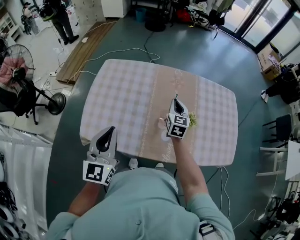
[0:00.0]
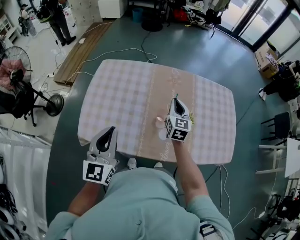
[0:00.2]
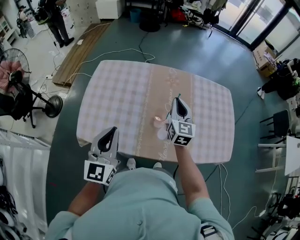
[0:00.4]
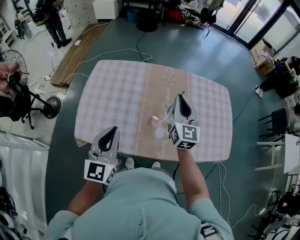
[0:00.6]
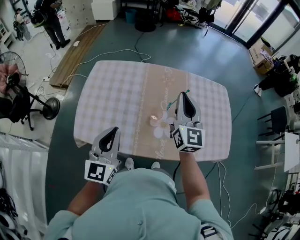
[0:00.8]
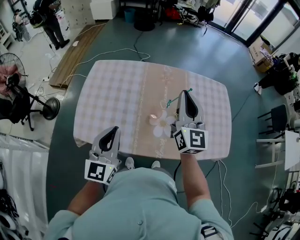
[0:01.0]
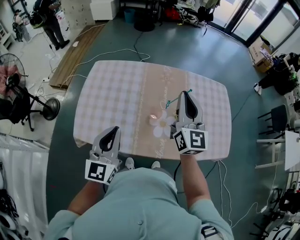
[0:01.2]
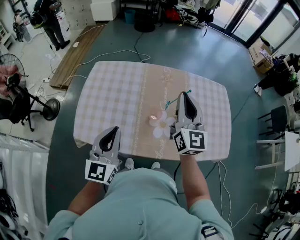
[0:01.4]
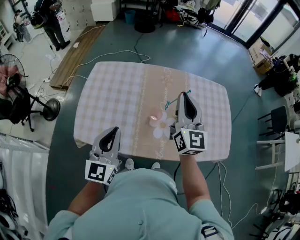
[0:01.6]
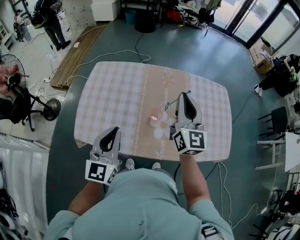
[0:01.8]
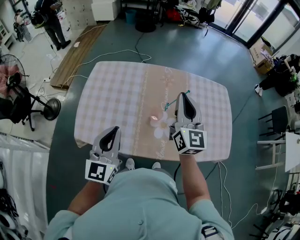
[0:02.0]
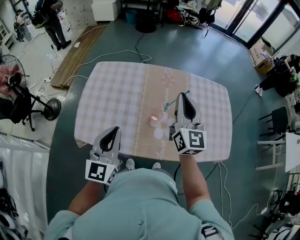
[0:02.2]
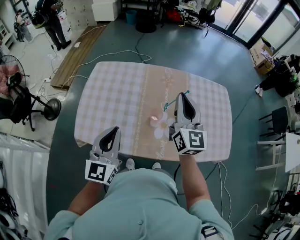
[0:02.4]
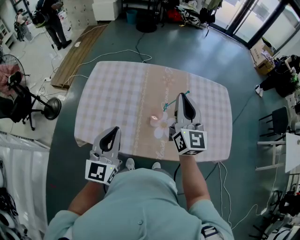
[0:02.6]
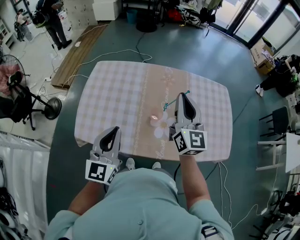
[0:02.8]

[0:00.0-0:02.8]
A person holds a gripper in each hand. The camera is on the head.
0:00.0 to 0:01.4: The left gripper is displaced to the right by roughly 5 cm; the right gripper goes about 25 cm upward and backward, and rotates some 30 degrees.
0:01.4 to 0:02.8: Neither gripper changes place.

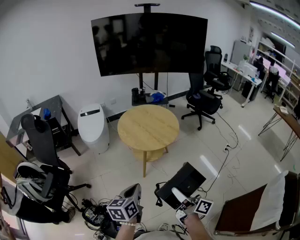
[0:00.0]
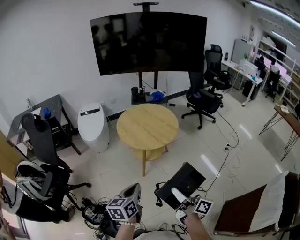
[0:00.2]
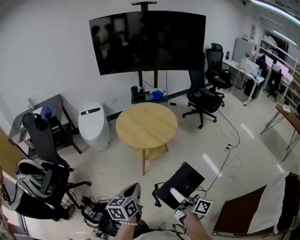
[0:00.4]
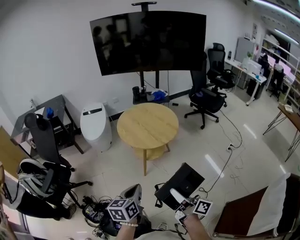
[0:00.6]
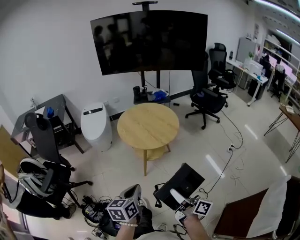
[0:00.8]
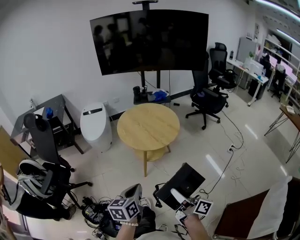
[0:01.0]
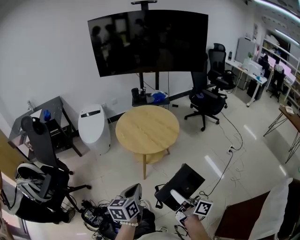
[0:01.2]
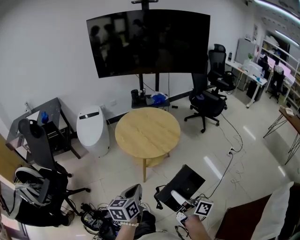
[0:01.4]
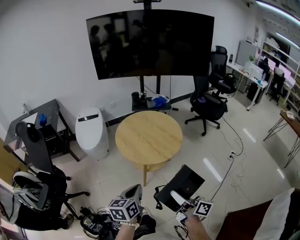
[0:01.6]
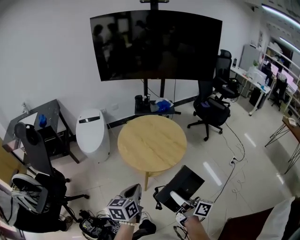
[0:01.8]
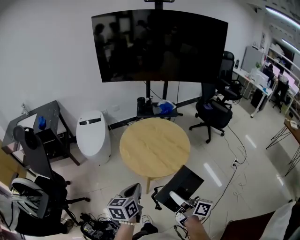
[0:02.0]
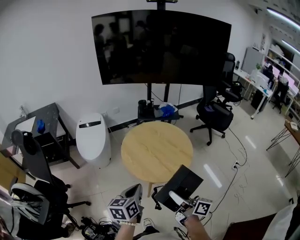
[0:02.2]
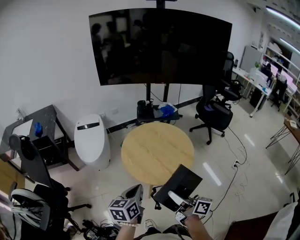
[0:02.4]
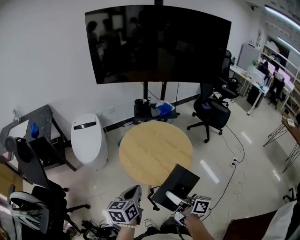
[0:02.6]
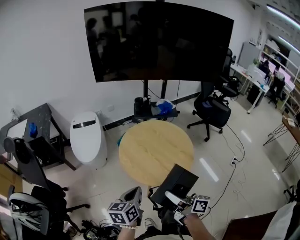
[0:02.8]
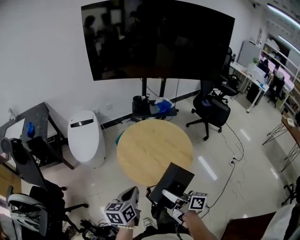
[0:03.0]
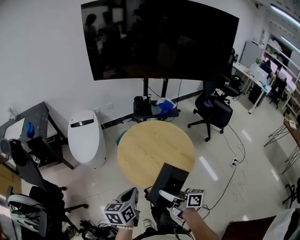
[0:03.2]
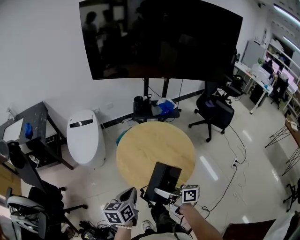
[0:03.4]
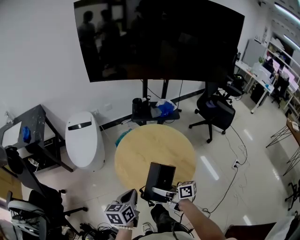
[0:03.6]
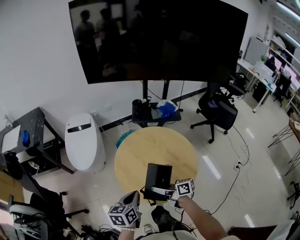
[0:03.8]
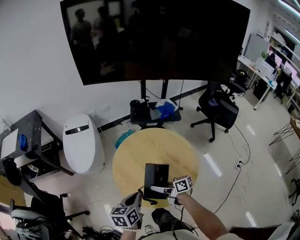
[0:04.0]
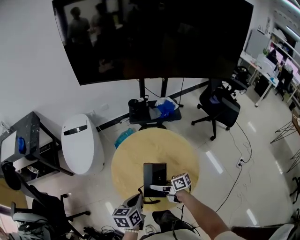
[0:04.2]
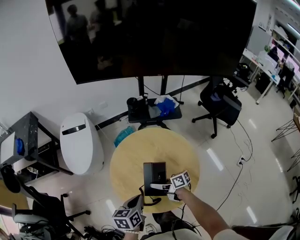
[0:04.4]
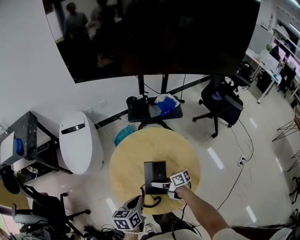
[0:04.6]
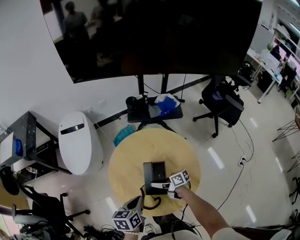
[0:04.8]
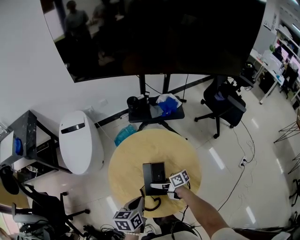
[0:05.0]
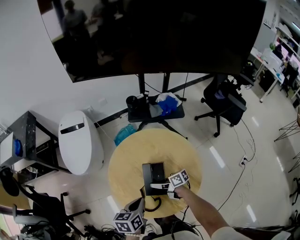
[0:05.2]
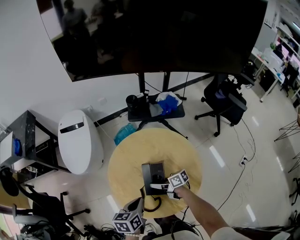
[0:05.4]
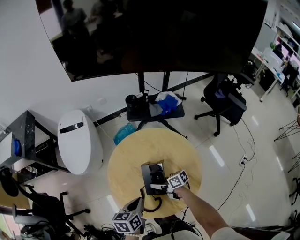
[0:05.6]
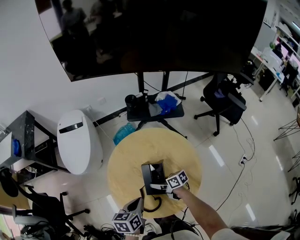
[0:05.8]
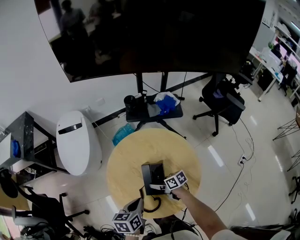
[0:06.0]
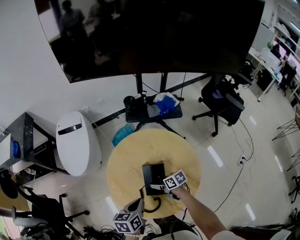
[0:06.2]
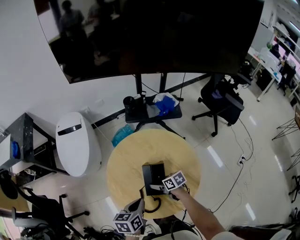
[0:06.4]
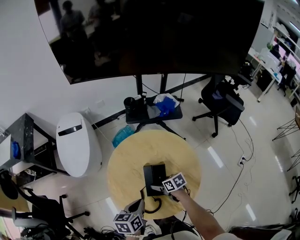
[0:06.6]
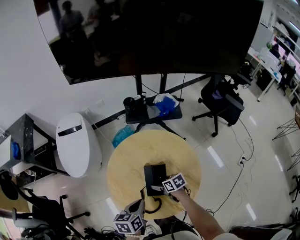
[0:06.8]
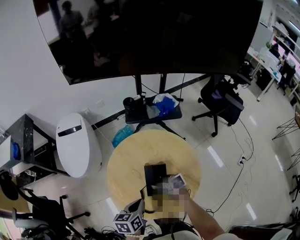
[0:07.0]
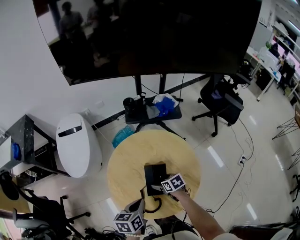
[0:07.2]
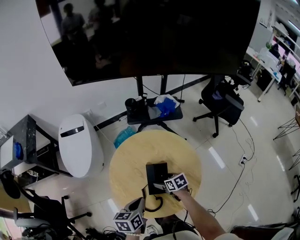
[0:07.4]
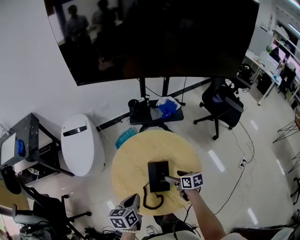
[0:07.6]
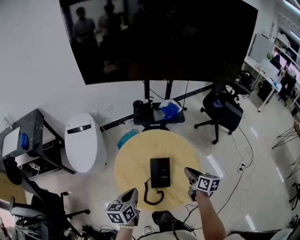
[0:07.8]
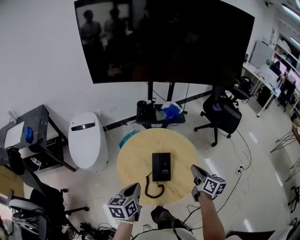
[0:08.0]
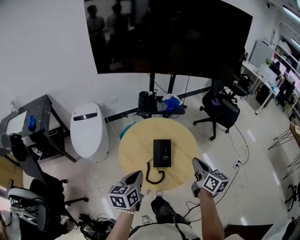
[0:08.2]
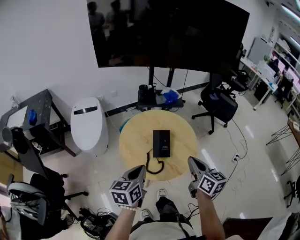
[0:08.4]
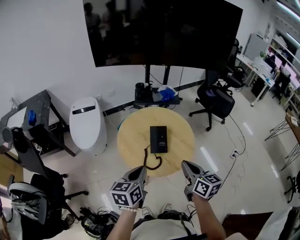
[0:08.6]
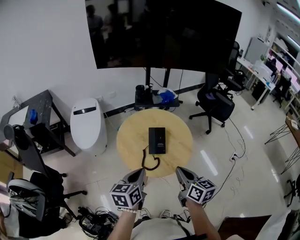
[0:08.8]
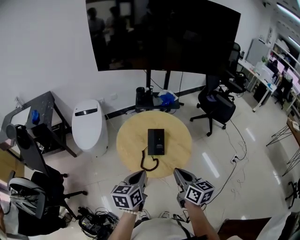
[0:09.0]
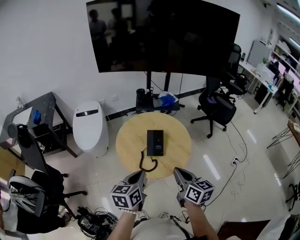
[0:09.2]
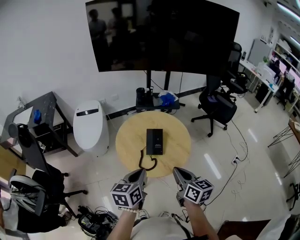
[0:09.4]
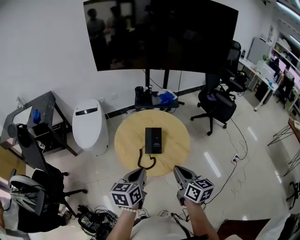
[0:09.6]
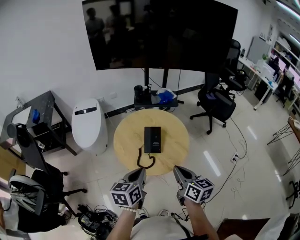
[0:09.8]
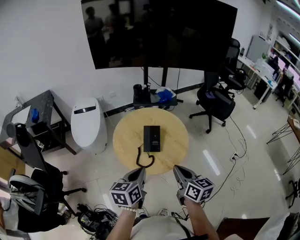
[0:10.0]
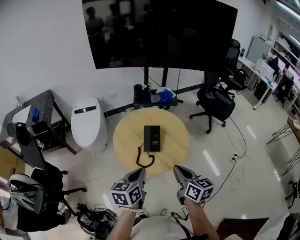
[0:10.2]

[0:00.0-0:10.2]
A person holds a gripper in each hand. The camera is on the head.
0:00.0 to 0:01.4: The grippers both shift forward by about 5 cm.
0:01.4 to 0:03.0: Both grippers move forward, some 25 cm.
0:03.0 to 0:04.4: The right gripper heads forward and downward, covering roughly 30 cm, and swivels about 30 degrees. The left gripper moves forward, to the right and downward, approximately 20 cm.
0:04.4 to 0:05.8: The right gripper moves downward, some 5 cm.
0:05.8 to 0:07.2: The right gripper moves to the right, some 5 cm, changes its angle by approximately 30 degrees, and opens up.
0:07.2 to 0:08.8: The right gripper is displaced upward and backward by some 40 cm, tips its fingers upward by some 40 degrees, and closes. The left gripper moves backward and upward, some 20 cm.
0:08.8 to 0:10.2: There are only small adjustments of the grippers.

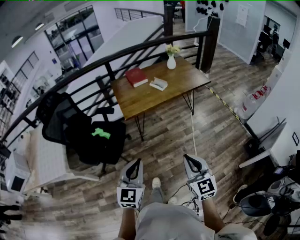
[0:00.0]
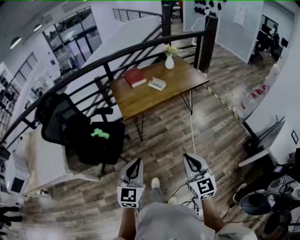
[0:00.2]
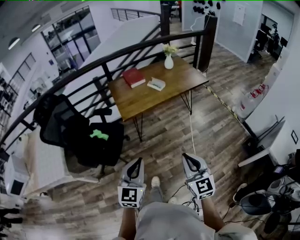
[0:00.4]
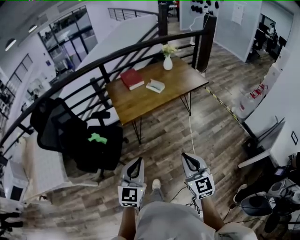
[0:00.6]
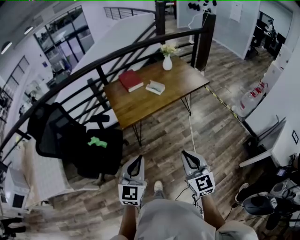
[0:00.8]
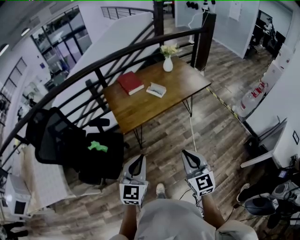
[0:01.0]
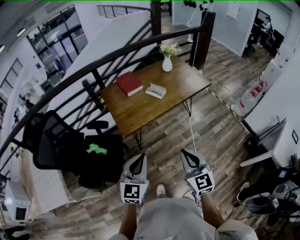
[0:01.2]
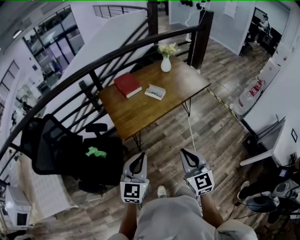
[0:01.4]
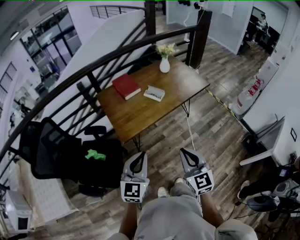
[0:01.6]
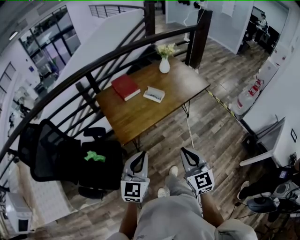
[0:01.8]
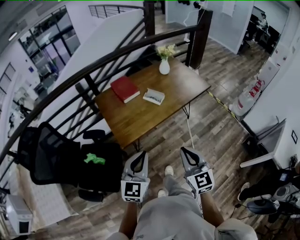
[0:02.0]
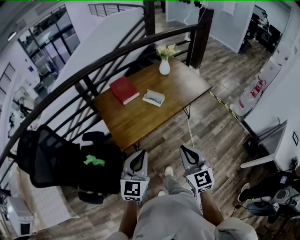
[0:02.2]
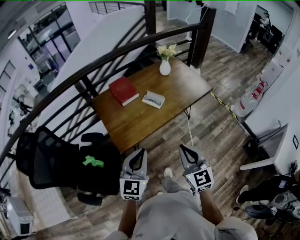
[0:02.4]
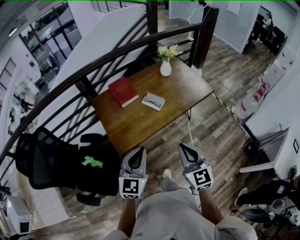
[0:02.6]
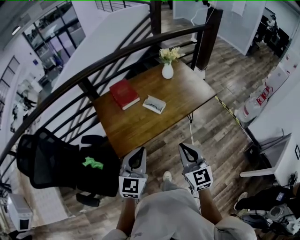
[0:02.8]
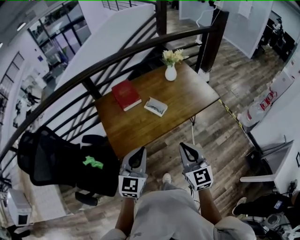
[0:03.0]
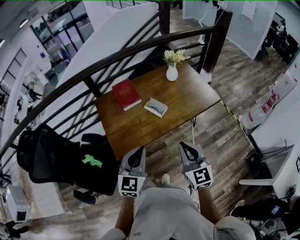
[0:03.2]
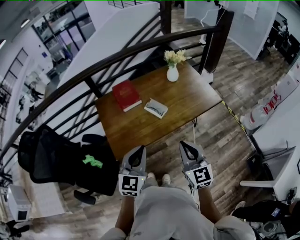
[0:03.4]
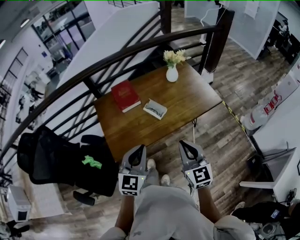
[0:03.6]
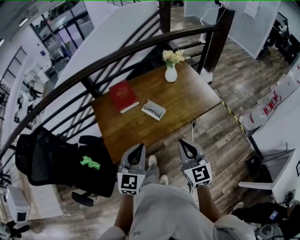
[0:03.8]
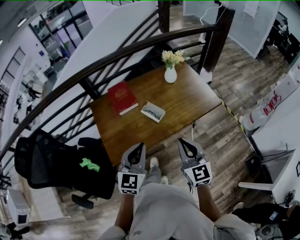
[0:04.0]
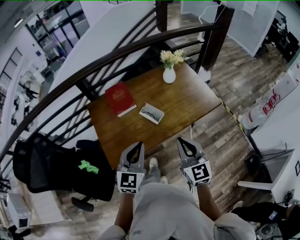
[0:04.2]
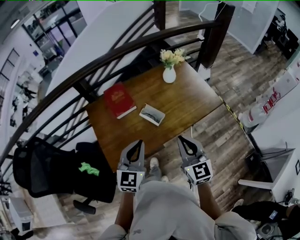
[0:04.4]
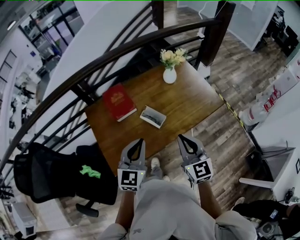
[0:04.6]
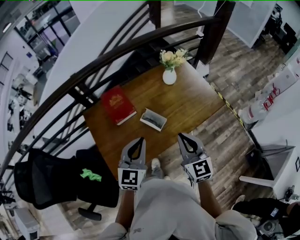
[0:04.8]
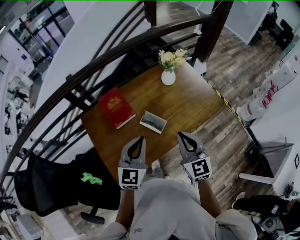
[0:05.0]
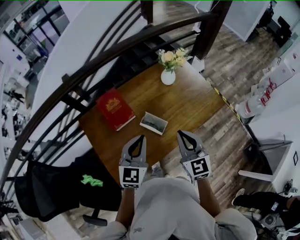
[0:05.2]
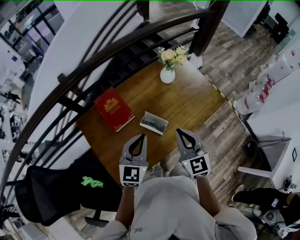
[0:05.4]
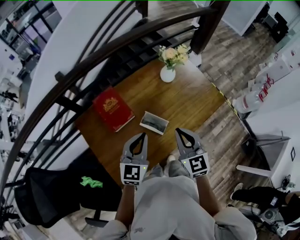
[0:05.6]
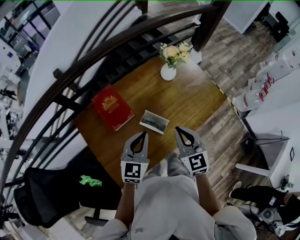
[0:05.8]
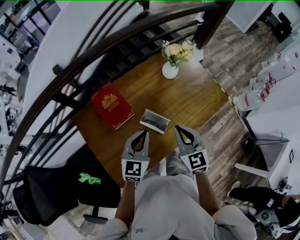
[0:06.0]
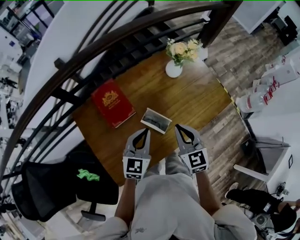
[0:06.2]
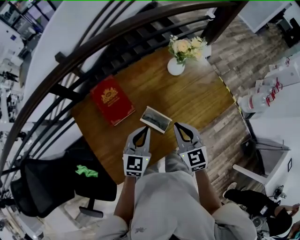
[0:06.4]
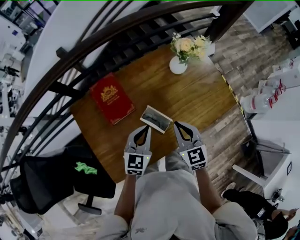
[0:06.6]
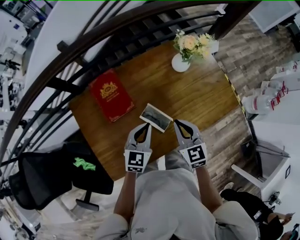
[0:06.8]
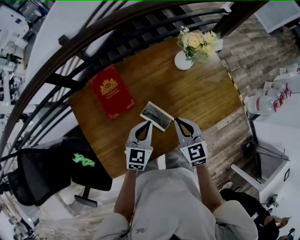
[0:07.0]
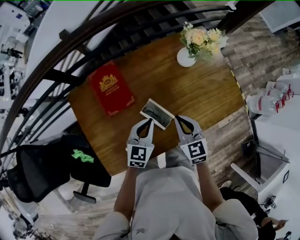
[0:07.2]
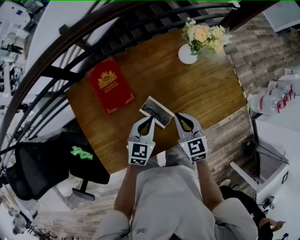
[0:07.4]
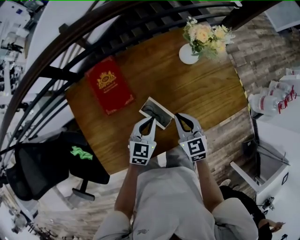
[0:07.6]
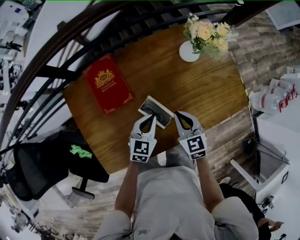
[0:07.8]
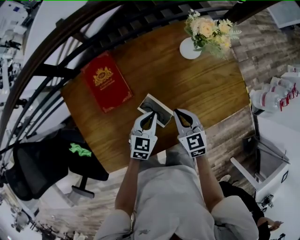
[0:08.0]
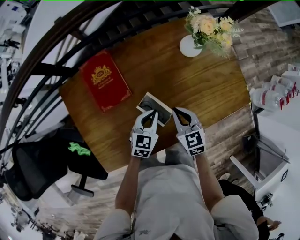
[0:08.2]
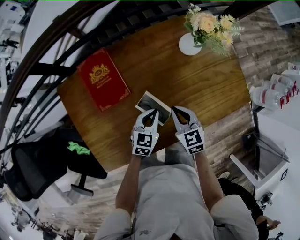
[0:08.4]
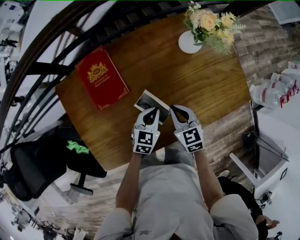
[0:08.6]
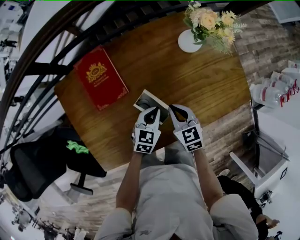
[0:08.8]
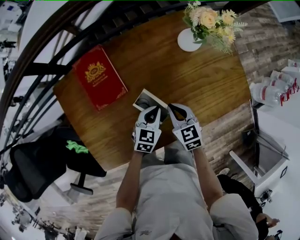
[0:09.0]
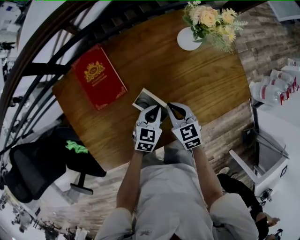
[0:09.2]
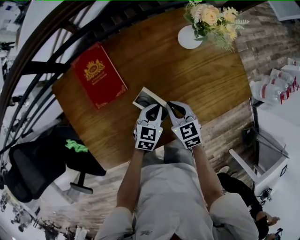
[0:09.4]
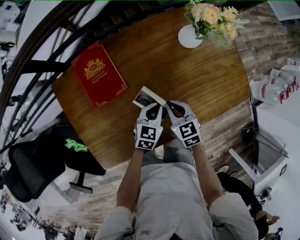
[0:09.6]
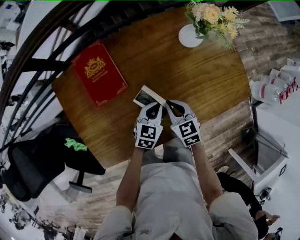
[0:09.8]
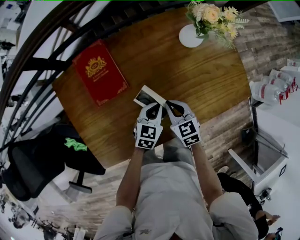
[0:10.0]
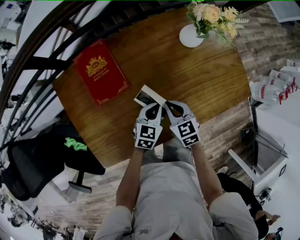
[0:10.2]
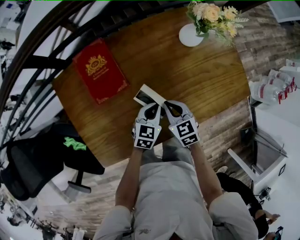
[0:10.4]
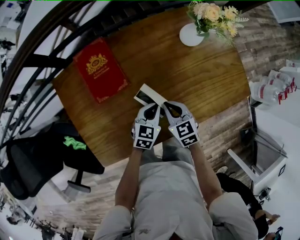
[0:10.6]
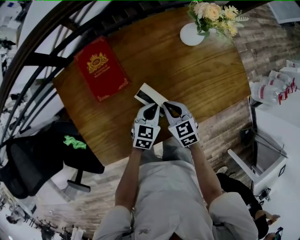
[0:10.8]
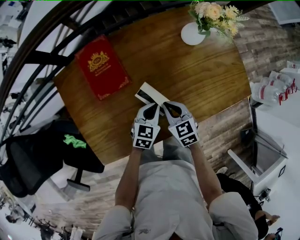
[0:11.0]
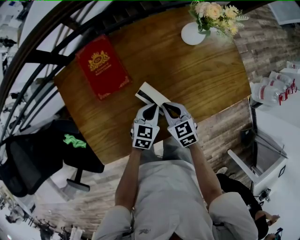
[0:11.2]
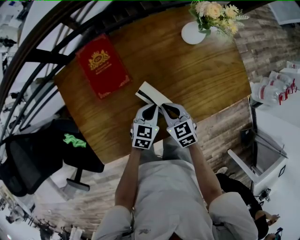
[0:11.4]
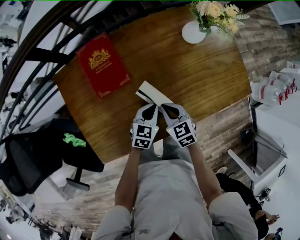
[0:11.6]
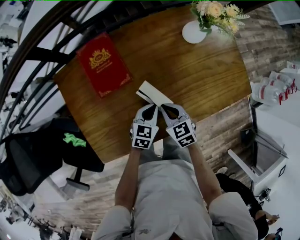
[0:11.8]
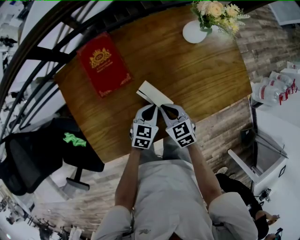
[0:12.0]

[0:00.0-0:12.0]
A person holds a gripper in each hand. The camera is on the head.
0:00.0 to 0:01.6: Both grippers travel together forward, about 25 cm.
0:01.6 to 0:03.0: Both grippers travel together forward, some 20 cm.
0:03.0 to 0:04.4: Both grippers travel together forward, some 15 cm.
0:04.4 to 0:06.0: The right gripper heads forward, covering about 15 cm. The left gripper heads forward and downward, covering some 20 cm.
0:06.0 to 0:07.6: The right gripper travels downward and forward by some 15 cm, while the left gripper goes approximately 15 cm downward.
0:07.6 to 0:09.0: Both grippers move downward, roughly 5 cm.
0:09.0 to 0:10.4: There are only small adjustments of the grippers.
0:10.4 to 0:12.0: The right gripper changes place by some 5 cm.
